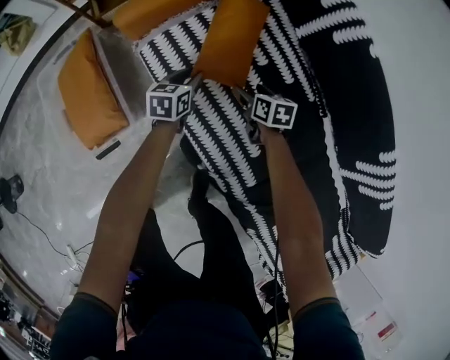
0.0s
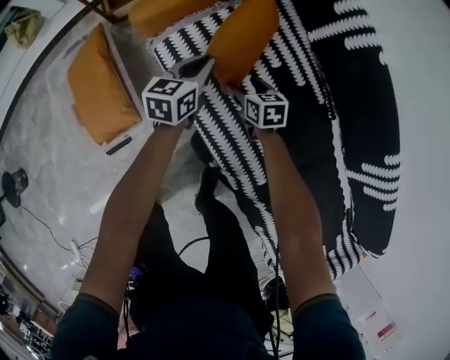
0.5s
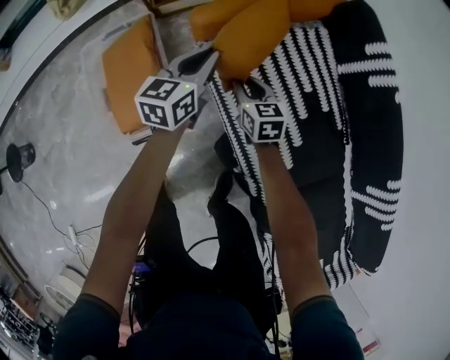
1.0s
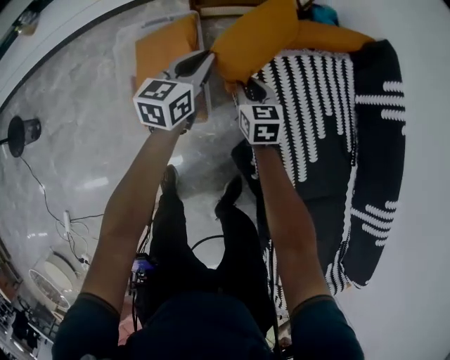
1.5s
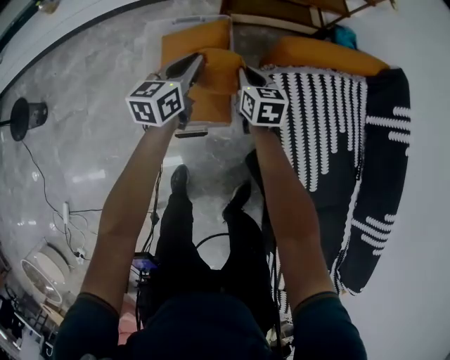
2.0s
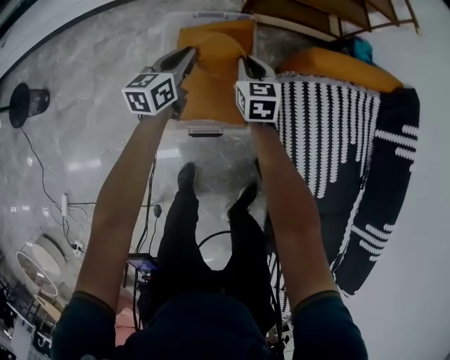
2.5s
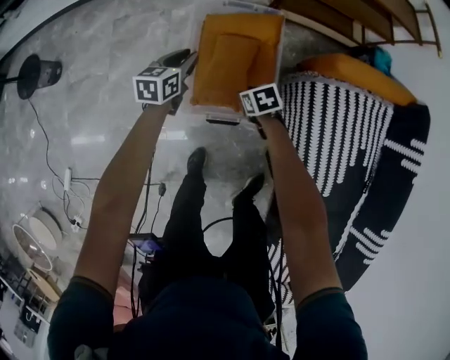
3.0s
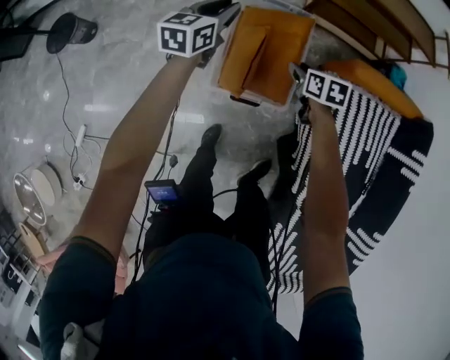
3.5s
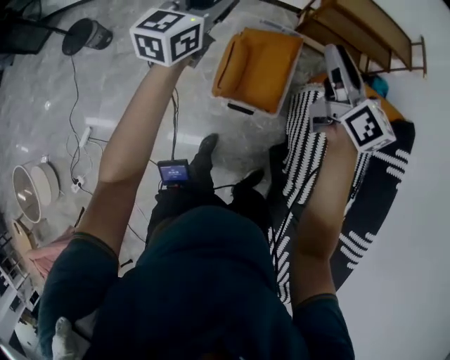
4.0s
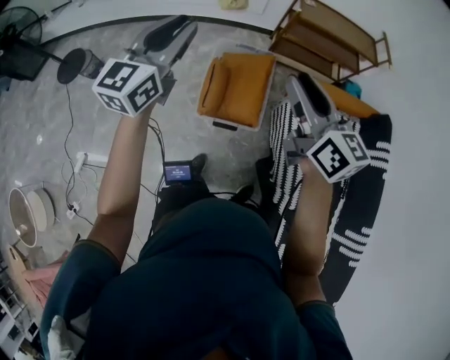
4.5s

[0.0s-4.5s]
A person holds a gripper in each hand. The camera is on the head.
0.0s to 2.0s: The two grippers travel together, to the left, roughly 50 cm. The left gripper is displaced upward by roughly 25 cm, swivels approximately 30 degrees, and closes up, while the right gripper turns by some 30 degrees, and closes.
2.0s to 4.5s: The two grippers go roughly 50 cm upward. The left gripper swivels approximately 30 degrees. Meanwhile the right gripper turns by approximately 40 degrees, and opens up.

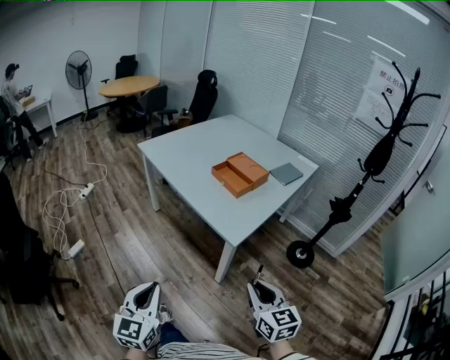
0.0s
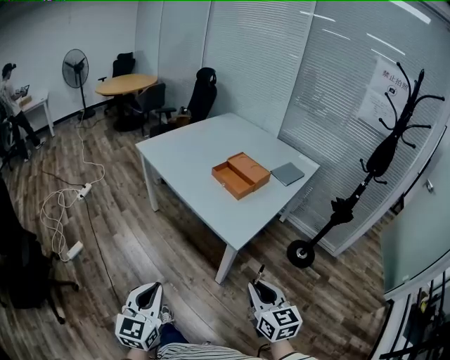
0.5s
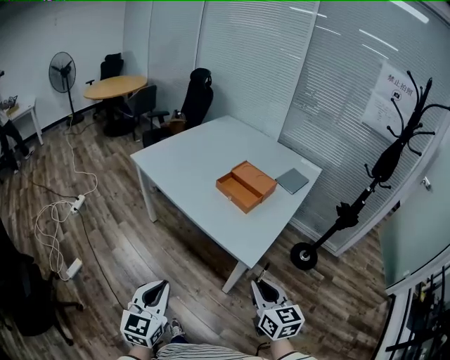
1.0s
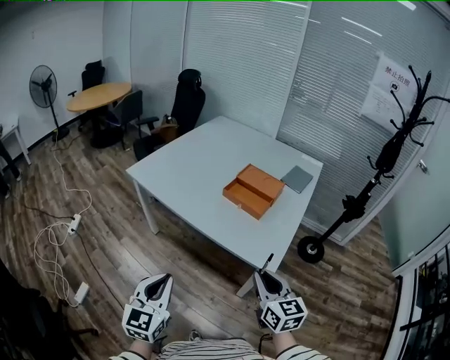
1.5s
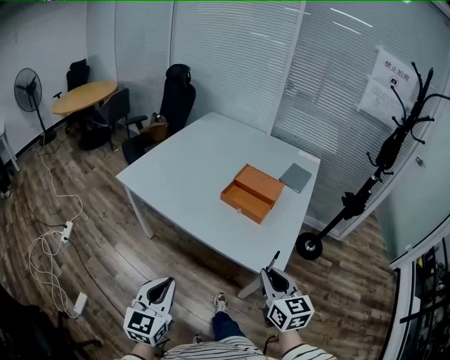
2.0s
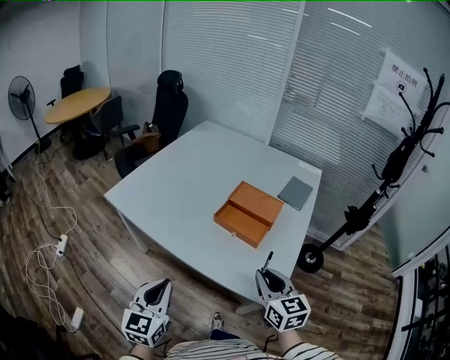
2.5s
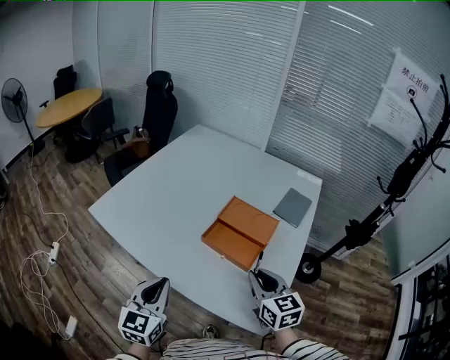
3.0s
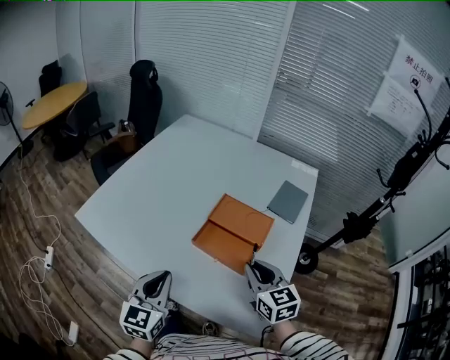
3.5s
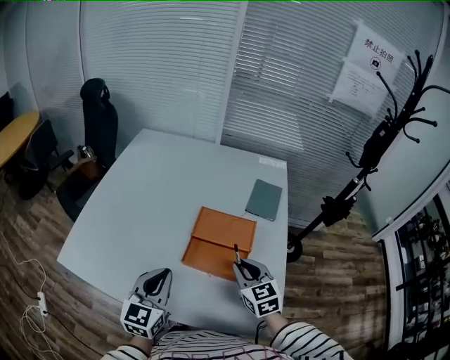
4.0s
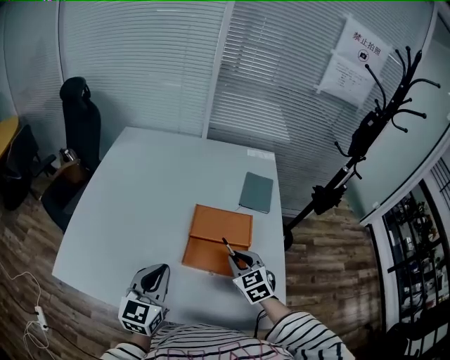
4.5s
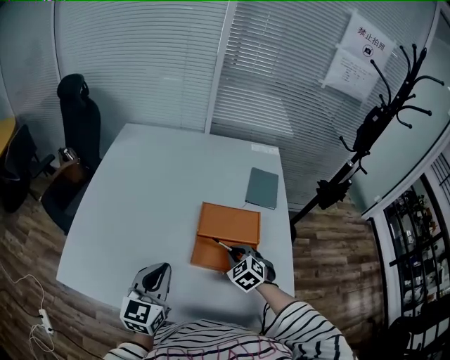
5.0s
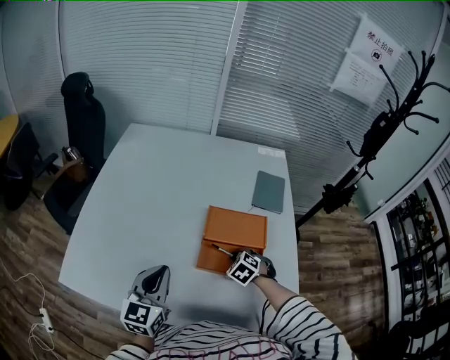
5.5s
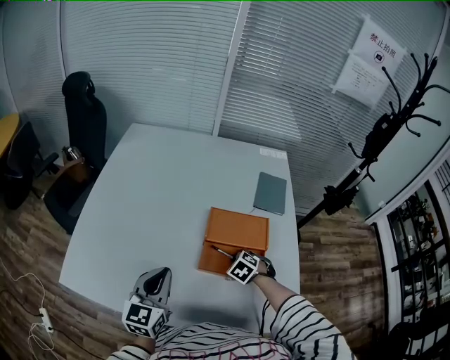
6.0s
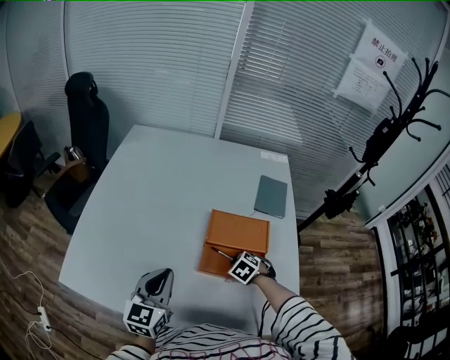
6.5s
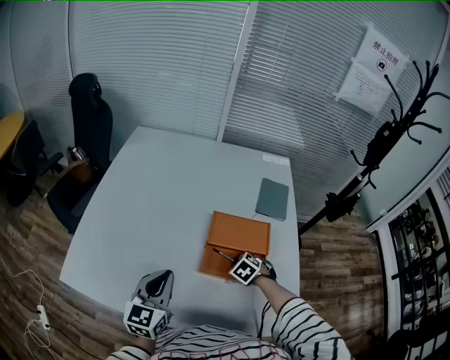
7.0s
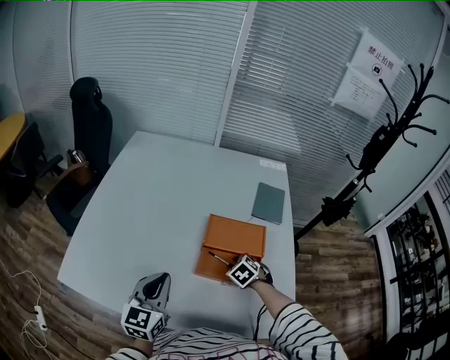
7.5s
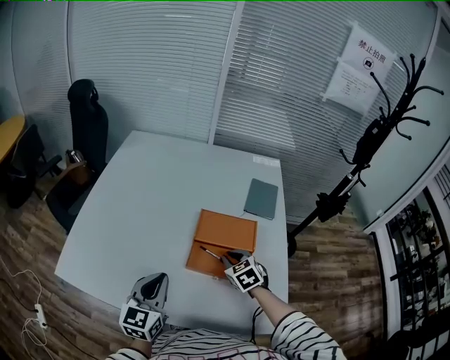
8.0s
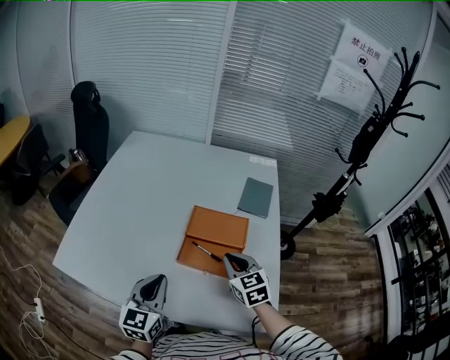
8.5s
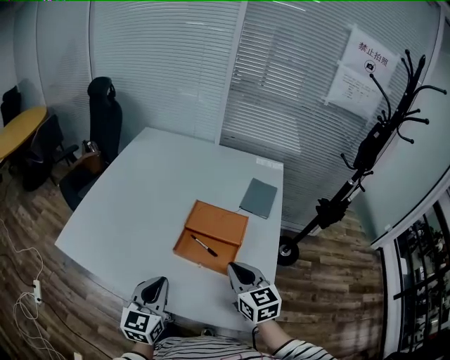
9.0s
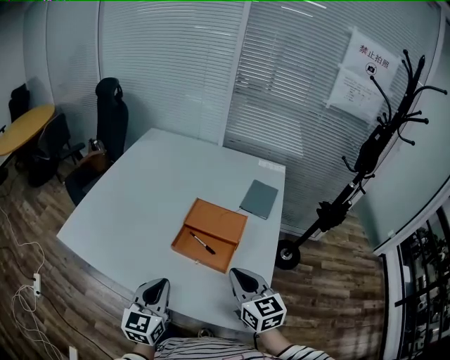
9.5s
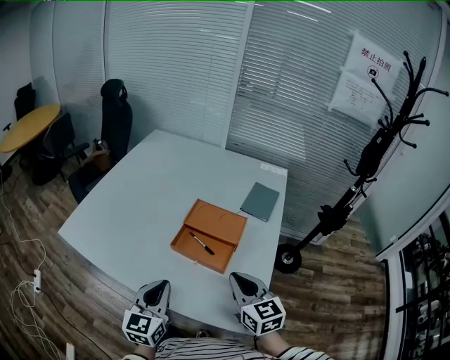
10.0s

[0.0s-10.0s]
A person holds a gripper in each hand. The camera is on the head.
0.0s to 2.0s: Both grippers travel together forward and to the left, some 30 cm. The left gripper rotates roughly 20 degrees.
2.0s to 4.0s: The two grippers go some 40 cm forward.
4.0s to 6.0s: The right gripper is displaced downward by approximately 20 cm, and tilts its fingers about 40 degrees downward. The left gripper goes some 10 cm to the left.
6.0s to 8.0s: The left gripper ends up approximately 5 cm from where it was. Meanwhile the right gripper shifts about 10 cm upward, and rotates some 30 degrees.
8.0s to 10.0s: The left gripper is displaced backward and to the right by some 15 cm, while the right gripper travels backward, upward and to the right by some 25 cm, and turns by about 30 degrees.

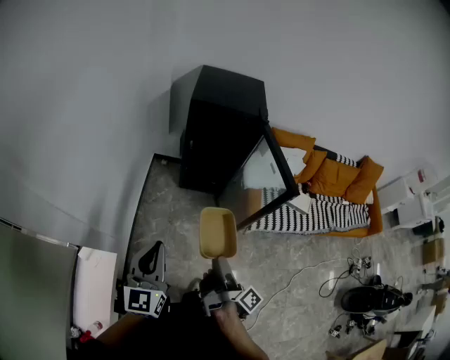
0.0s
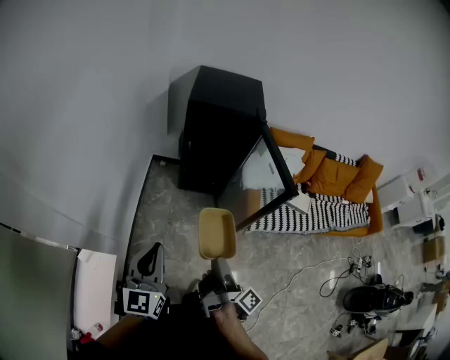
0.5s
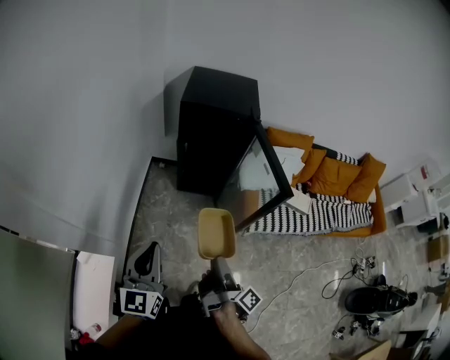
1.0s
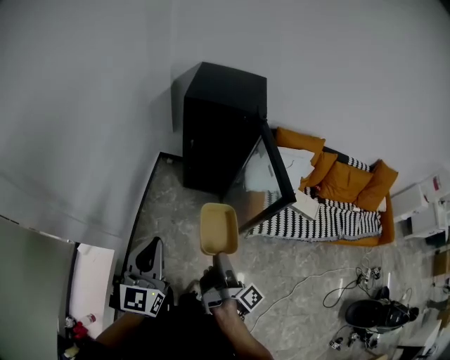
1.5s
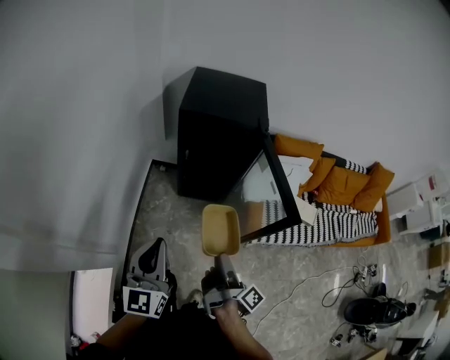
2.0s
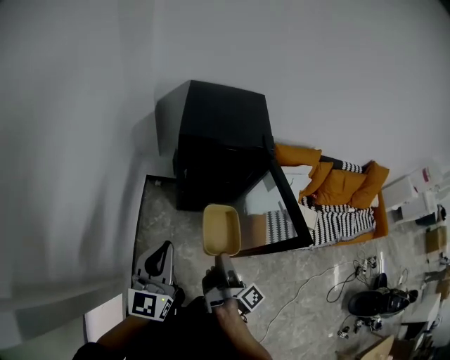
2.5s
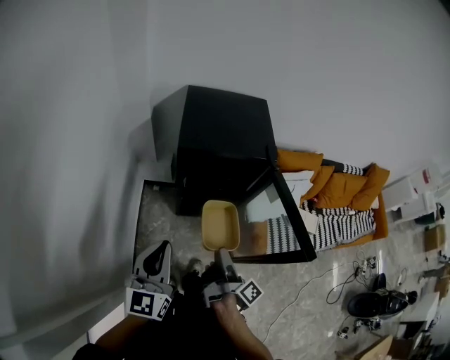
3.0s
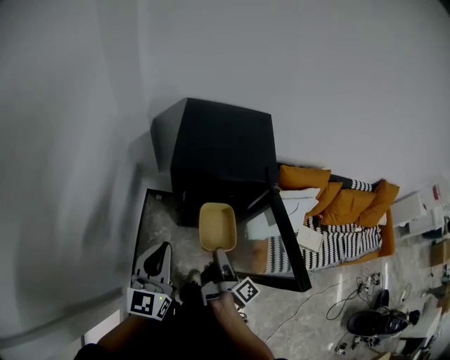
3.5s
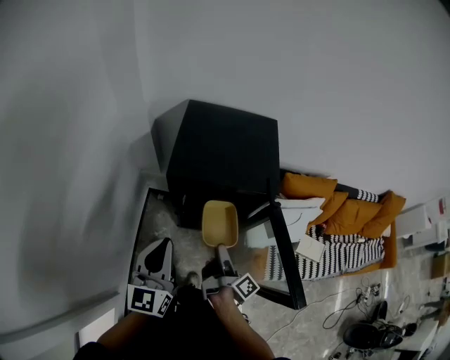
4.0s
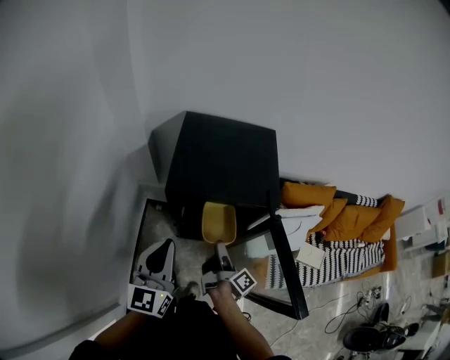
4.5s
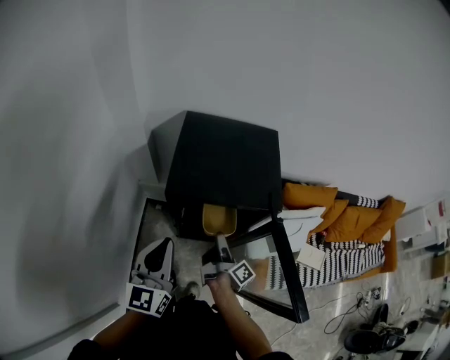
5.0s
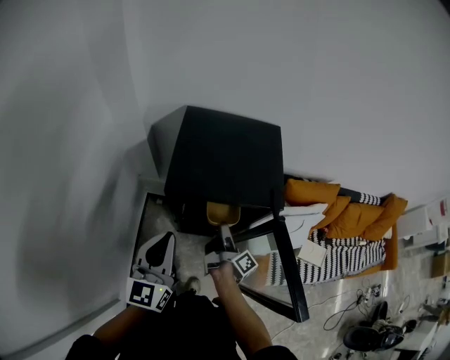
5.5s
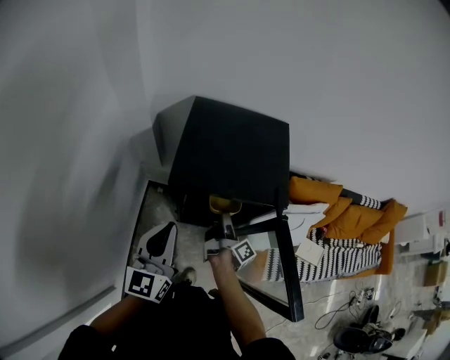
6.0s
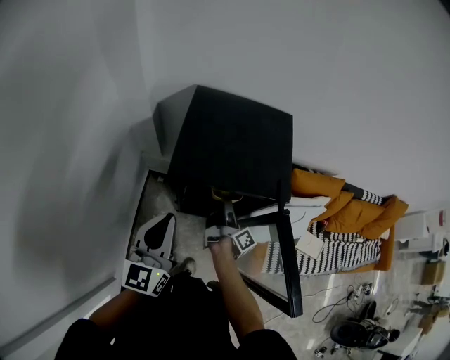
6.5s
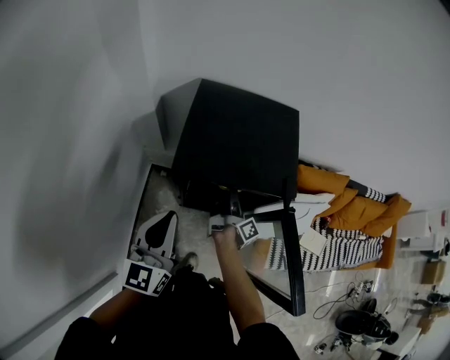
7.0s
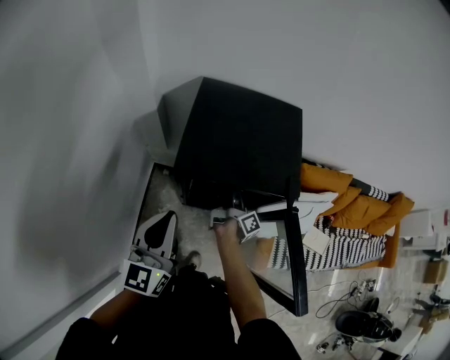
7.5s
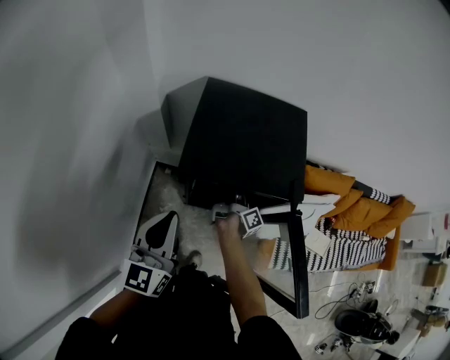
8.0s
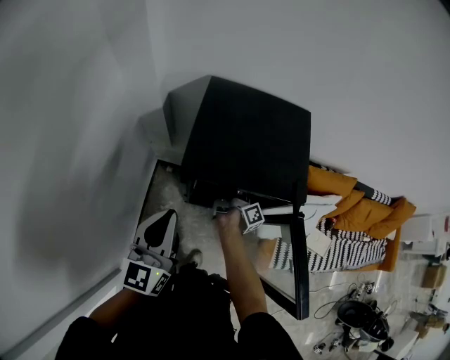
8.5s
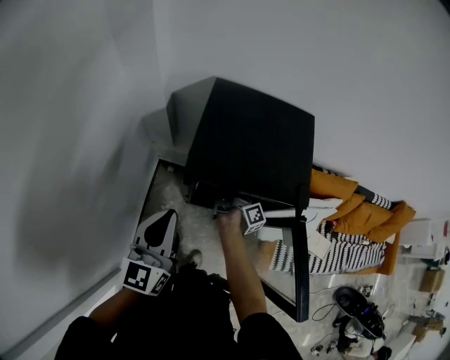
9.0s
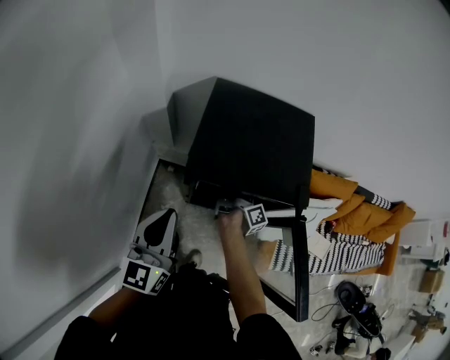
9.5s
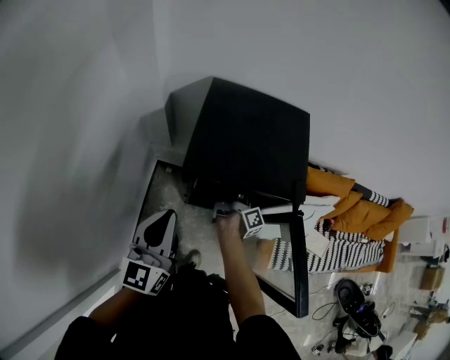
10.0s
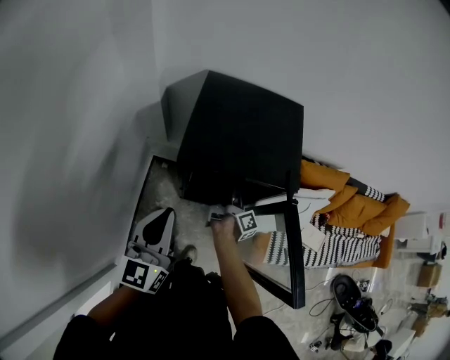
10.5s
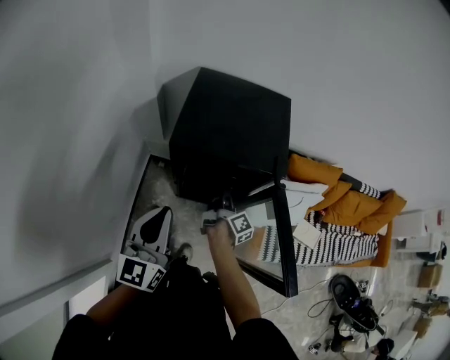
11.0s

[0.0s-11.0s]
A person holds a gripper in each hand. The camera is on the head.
0.0s to 2.0s: The left gripper shifts by about 15 cm.
2.0s to 3.5s: The left gripper changes place by approximately 25 cm.
3.5s to 5.5s: The left gripper shifts by about 10 cm.
9.0s to 11.0s: The left gripper changes place by some 10 cm.

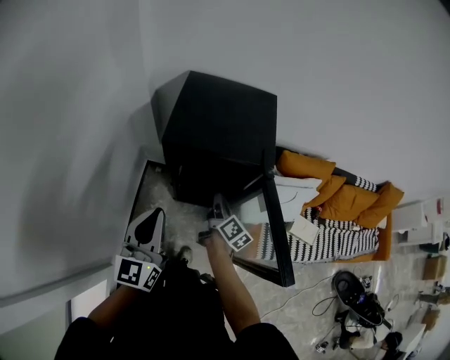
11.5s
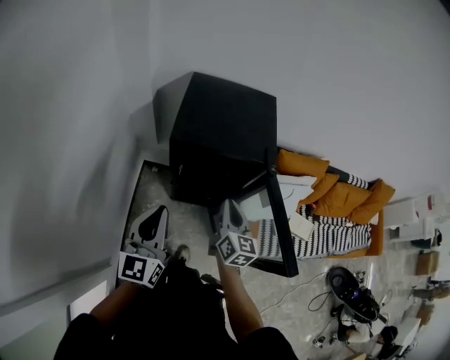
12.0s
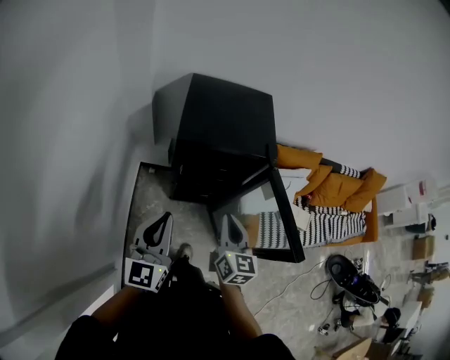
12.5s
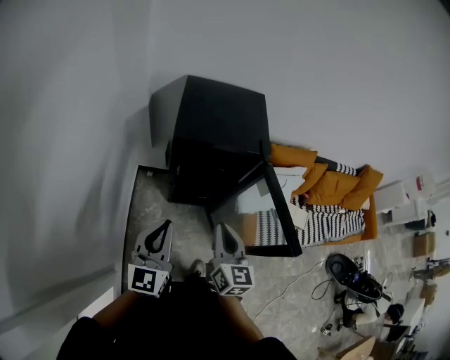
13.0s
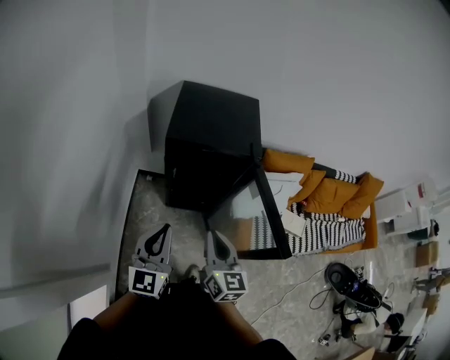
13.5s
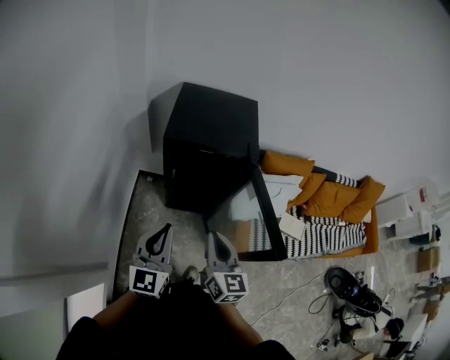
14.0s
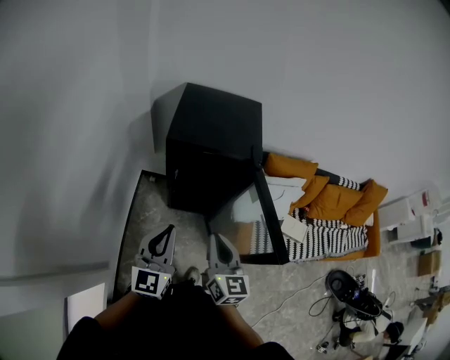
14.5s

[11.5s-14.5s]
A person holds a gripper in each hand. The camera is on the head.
11.5s to 13.0s: The left gripper moves some 10 cm.
13.0s to 14.5s: The left gripper moves roughly 5 cm.
